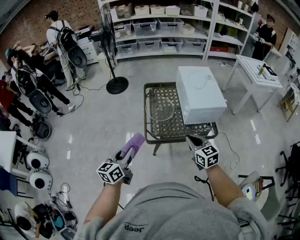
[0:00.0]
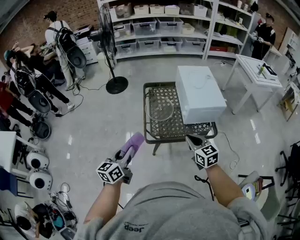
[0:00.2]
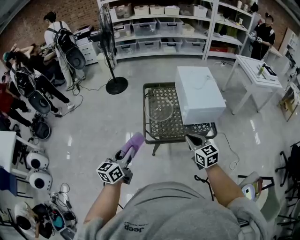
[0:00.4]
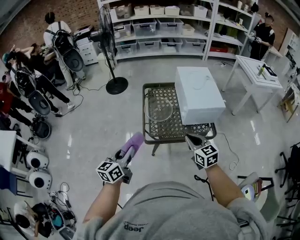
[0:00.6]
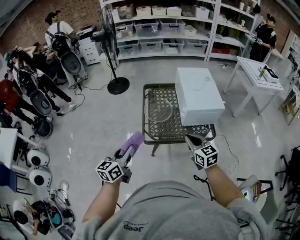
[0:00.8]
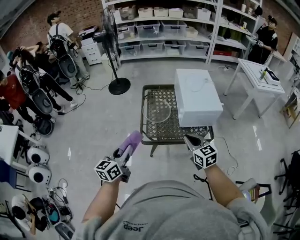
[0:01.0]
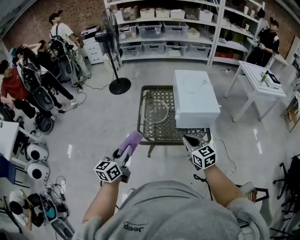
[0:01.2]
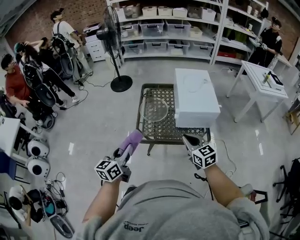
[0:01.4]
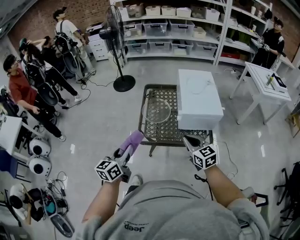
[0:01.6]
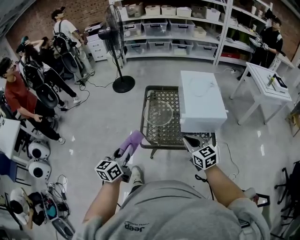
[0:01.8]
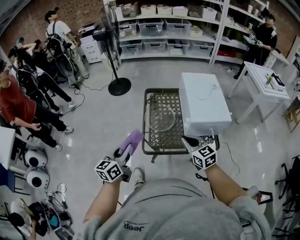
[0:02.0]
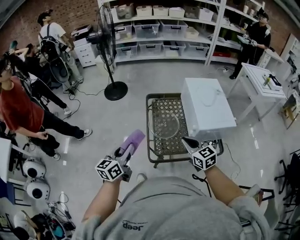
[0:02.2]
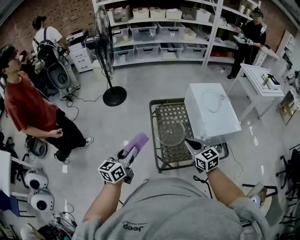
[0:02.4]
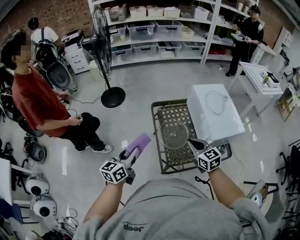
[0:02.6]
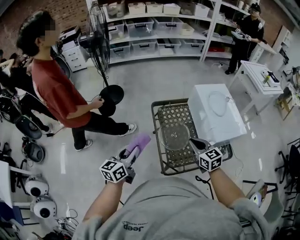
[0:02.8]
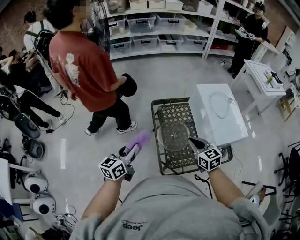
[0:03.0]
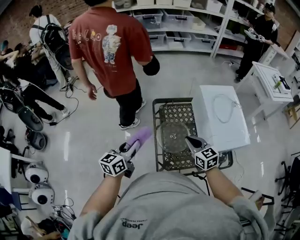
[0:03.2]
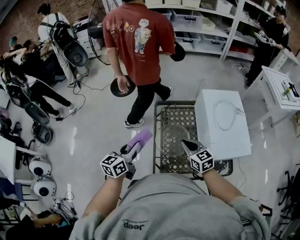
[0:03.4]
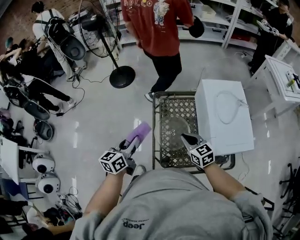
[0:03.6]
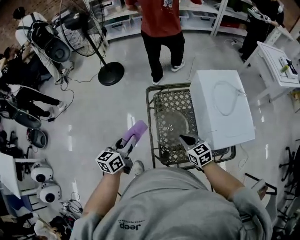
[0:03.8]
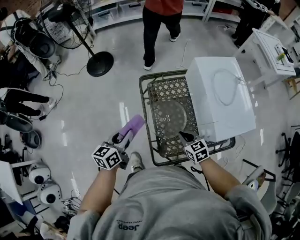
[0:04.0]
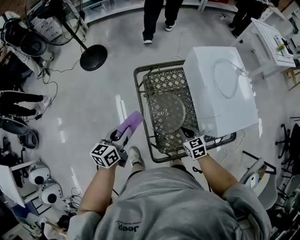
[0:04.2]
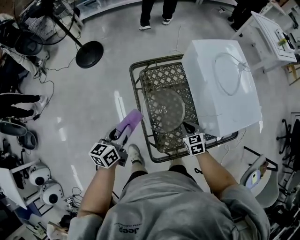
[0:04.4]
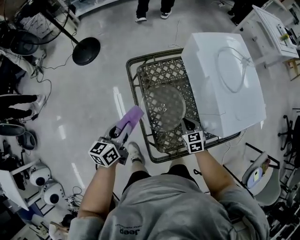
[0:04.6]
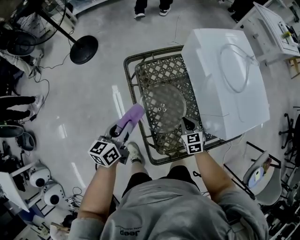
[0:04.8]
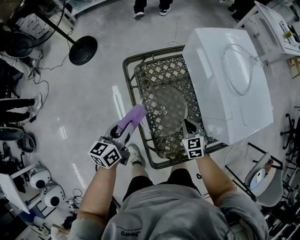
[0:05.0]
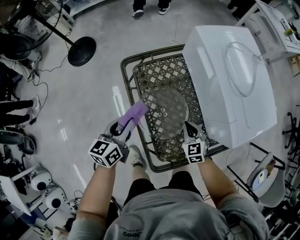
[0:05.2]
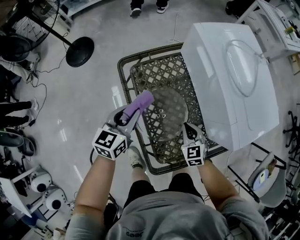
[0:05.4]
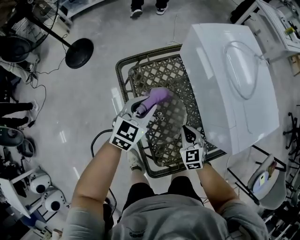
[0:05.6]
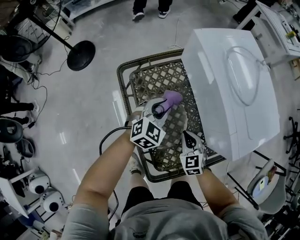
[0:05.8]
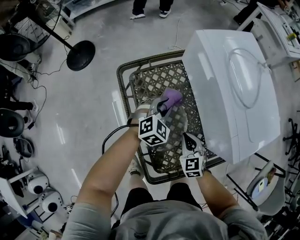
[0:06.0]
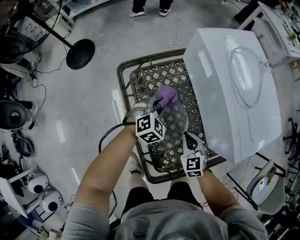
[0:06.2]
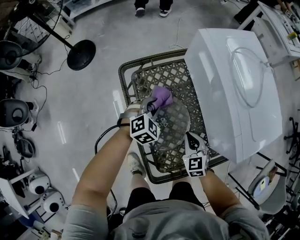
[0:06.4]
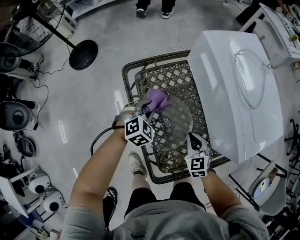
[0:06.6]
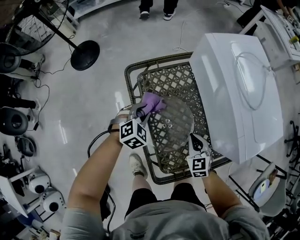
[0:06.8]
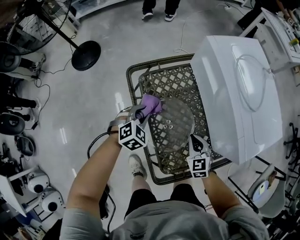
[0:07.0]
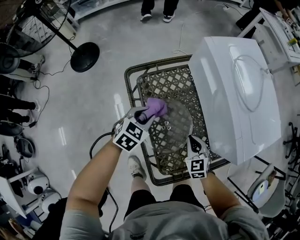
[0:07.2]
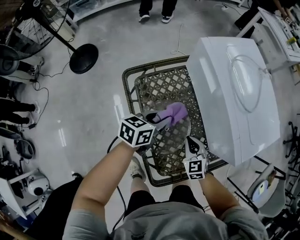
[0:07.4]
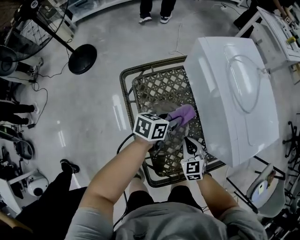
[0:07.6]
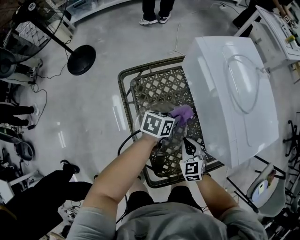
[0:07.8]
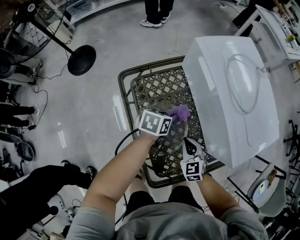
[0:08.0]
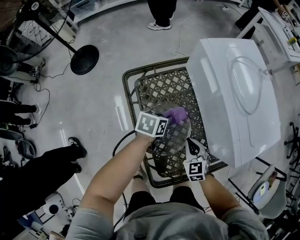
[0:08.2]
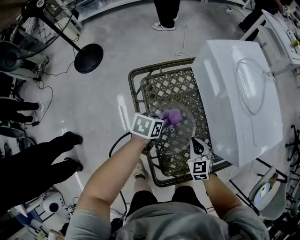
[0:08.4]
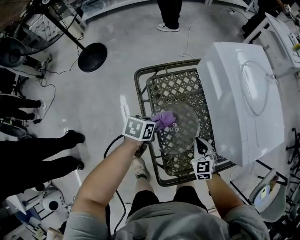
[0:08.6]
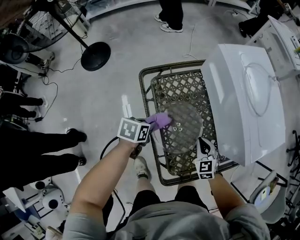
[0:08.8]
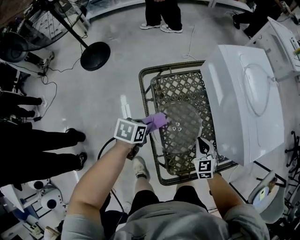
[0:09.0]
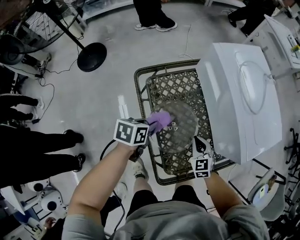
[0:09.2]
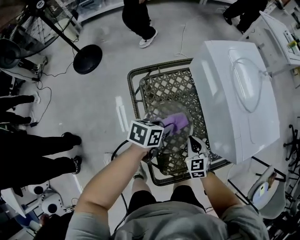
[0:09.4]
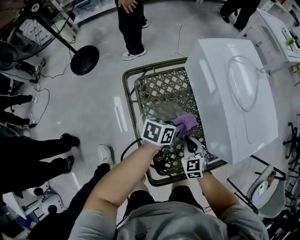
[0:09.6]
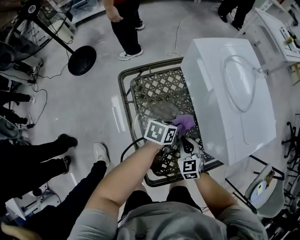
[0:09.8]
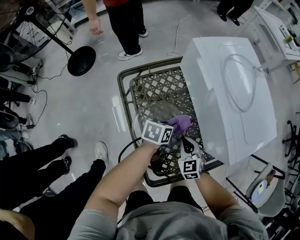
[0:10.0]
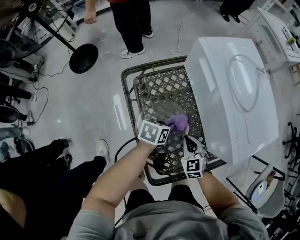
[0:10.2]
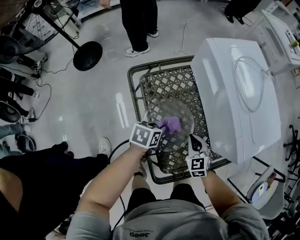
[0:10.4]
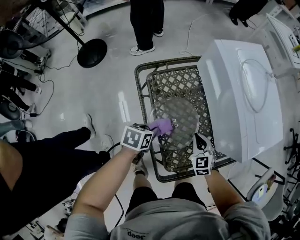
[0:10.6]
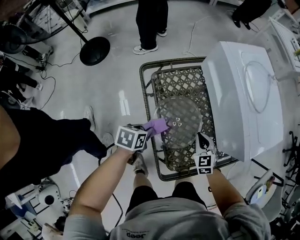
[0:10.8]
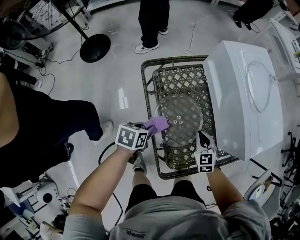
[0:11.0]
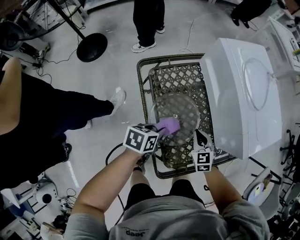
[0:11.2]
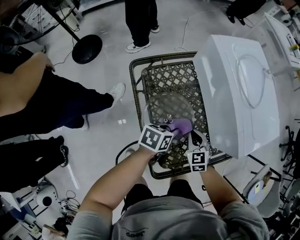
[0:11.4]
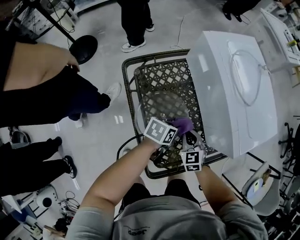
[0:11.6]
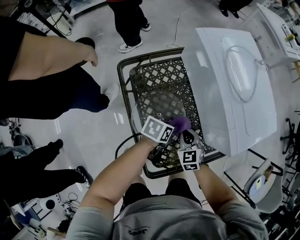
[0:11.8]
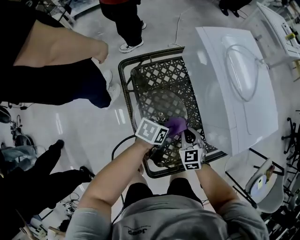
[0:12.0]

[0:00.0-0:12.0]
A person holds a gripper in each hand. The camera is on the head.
0.0 to 1.6 s: Both grippers travel together to the right, some 10 cm.
1.6 to 3.0 s: The grippers both shift forward and to the left by approximately 35 cm.
3.0 to 4.4 s: The left gripper moves downward, forward and to the right, some 20 cm, while the right gripper travels downward by about 25 cm, and changes its angle by approximately 20 degrees.
4.4 to 6.0 s: The left gripper travels to the right, forward and downward by roughly 30 cm, and rotates around the line of its fingers by some 70 degrees, clockwise from behind.
6.0 to 7.6 s: The left gripper reaches some 10 cm to the left, then returns, and rolls counterclockwise, seen from behind, by some 60 degrees.
7.6 to 9.0 s: The left gripper goes some 20 cm to the left and backward, and turns by approximately 30 degrees.
9.0 to 10.4 s: The left gripper is displaced to the right by roughly 10 cm.
10.4 to 12.0 s: The left gripper goes some 10 cm to the right.

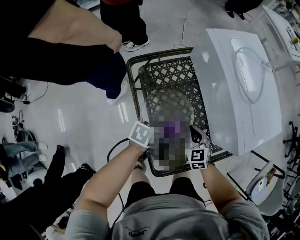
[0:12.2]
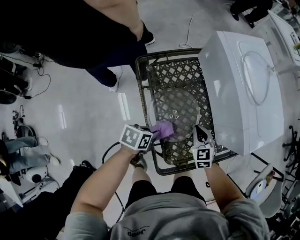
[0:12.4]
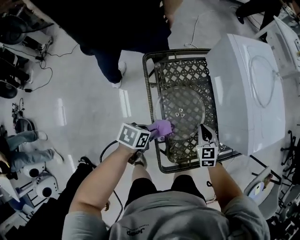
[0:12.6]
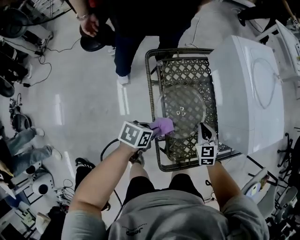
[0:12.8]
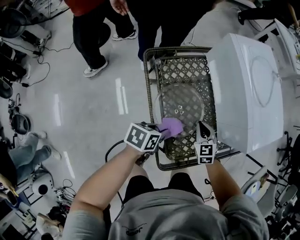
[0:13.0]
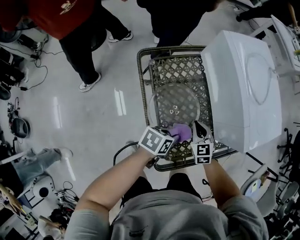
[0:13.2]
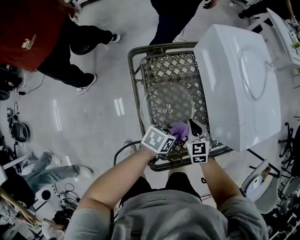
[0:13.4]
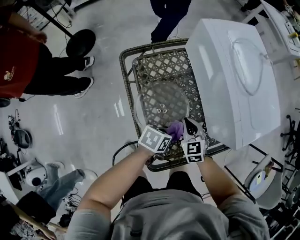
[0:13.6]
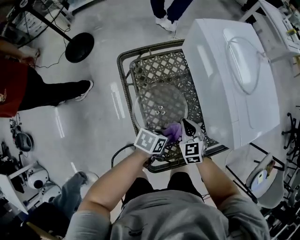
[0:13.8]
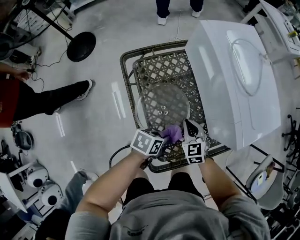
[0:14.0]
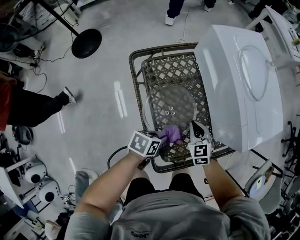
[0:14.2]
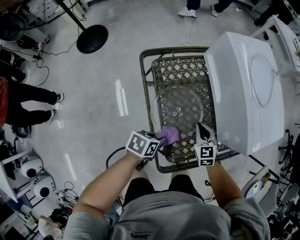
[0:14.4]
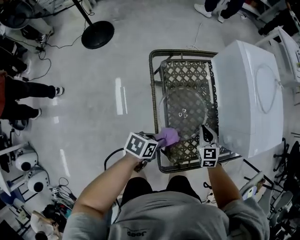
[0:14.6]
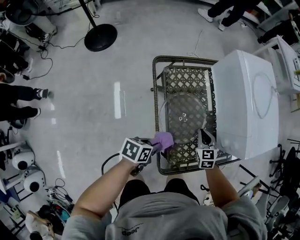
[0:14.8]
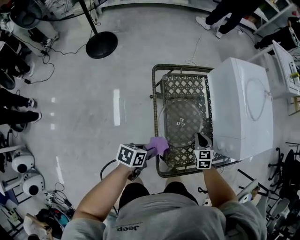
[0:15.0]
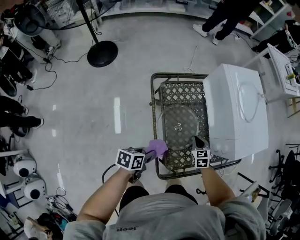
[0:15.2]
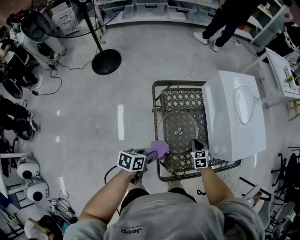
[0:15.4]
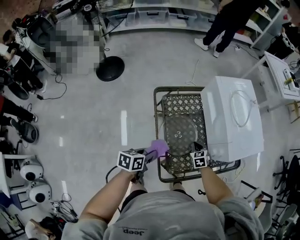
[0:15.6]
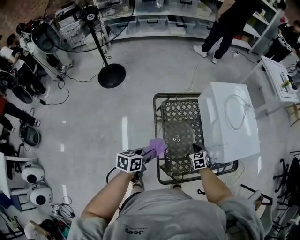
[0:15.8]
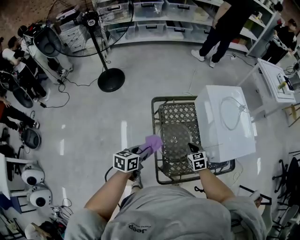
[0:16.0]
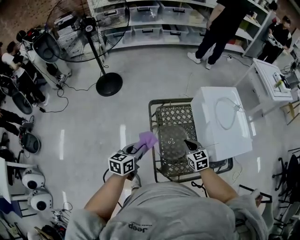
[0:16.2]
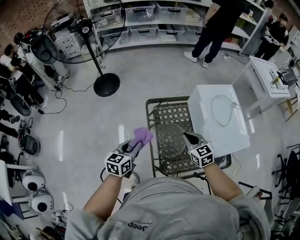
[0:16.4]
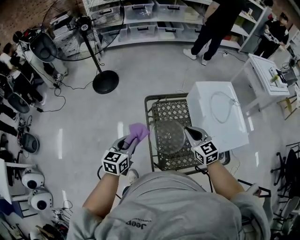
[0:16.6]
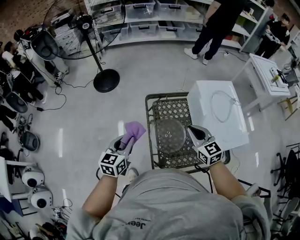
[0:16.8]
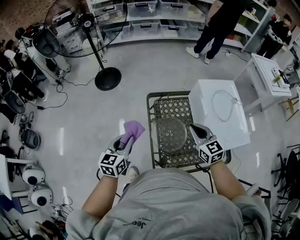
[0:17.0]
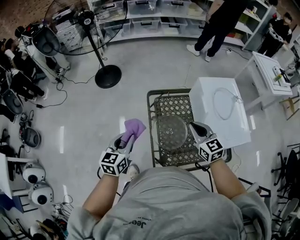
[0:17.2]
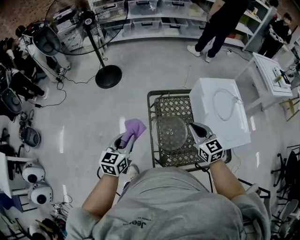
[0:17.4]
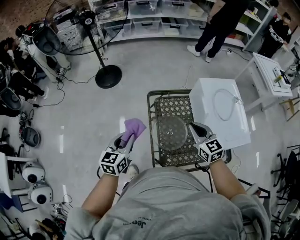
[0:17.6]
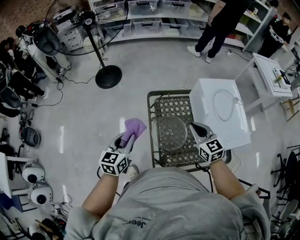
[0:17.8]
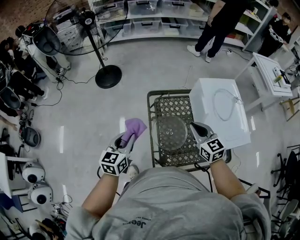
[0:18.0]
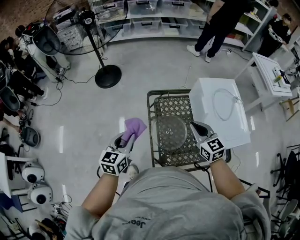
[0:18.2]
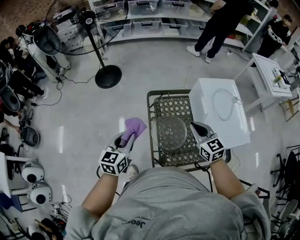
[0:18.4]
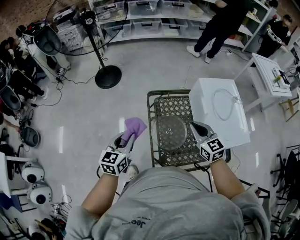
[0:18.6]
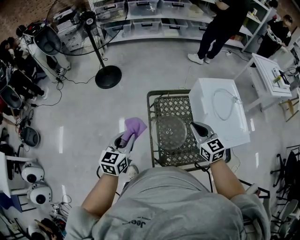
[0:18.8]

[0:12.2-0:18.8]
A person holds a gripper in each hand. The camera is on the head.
12.2 to 13.8 s: The left gripper shifts about 5 cm to the right.
13.8 to 15.4 s: The left gripper is displaced to the left, backward and upward by roughly 20 cm, and turns by roughly 20 degrees.
15.4 to 17.2 s: The right gripper moves upward, approximately 30 cm, and points its fingers about 30 degrees further upward; the left gripper goes approximately 20 cm upward, and turns by approximately 40 degrees.
17.2 to 18.8 s: Both grippers stay put.

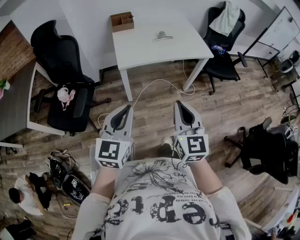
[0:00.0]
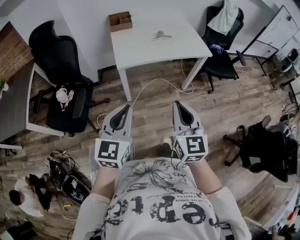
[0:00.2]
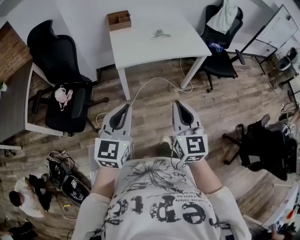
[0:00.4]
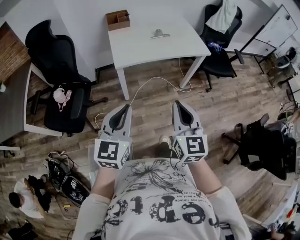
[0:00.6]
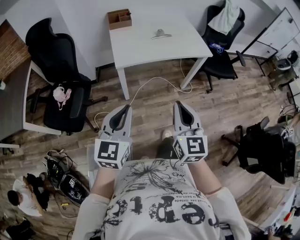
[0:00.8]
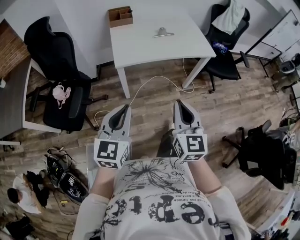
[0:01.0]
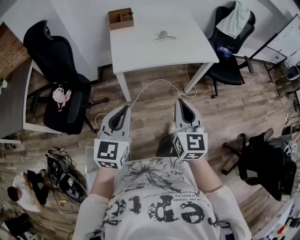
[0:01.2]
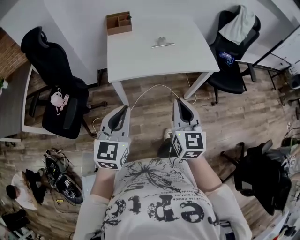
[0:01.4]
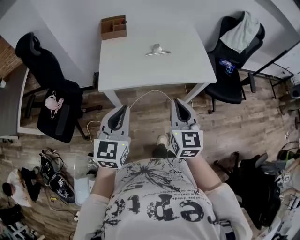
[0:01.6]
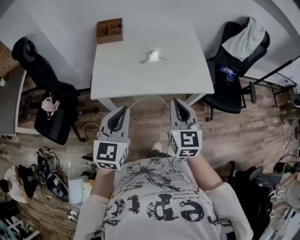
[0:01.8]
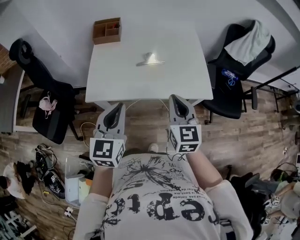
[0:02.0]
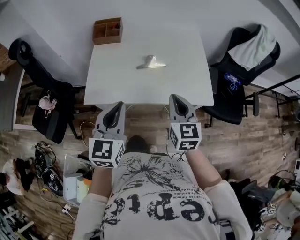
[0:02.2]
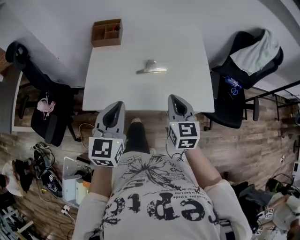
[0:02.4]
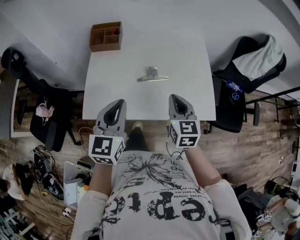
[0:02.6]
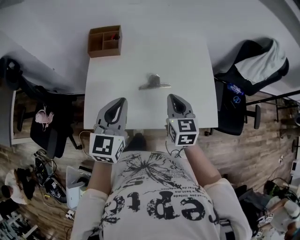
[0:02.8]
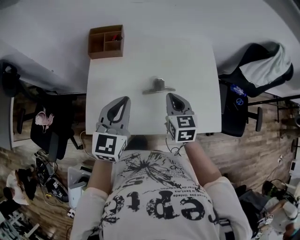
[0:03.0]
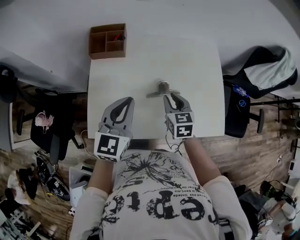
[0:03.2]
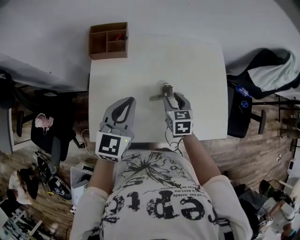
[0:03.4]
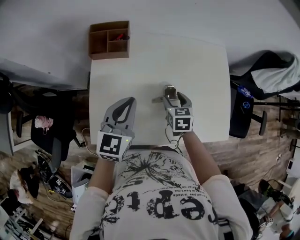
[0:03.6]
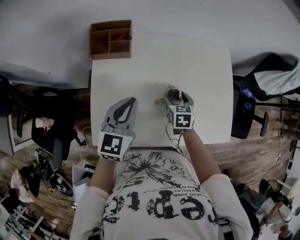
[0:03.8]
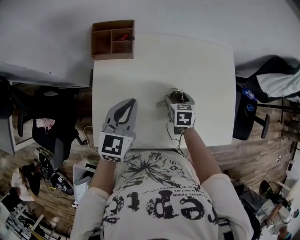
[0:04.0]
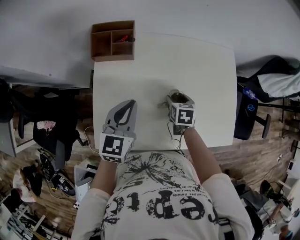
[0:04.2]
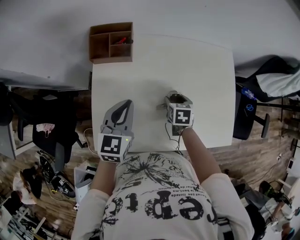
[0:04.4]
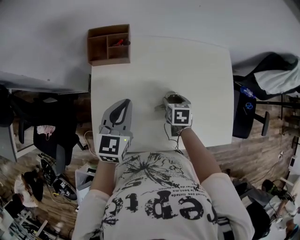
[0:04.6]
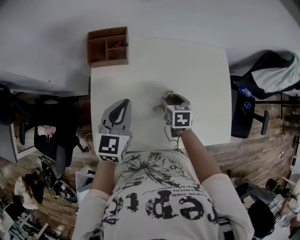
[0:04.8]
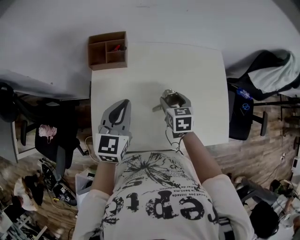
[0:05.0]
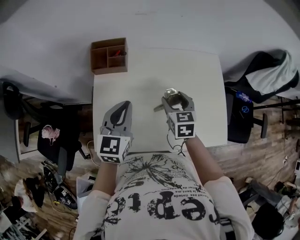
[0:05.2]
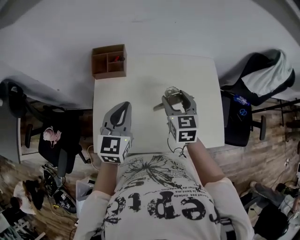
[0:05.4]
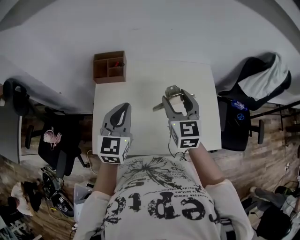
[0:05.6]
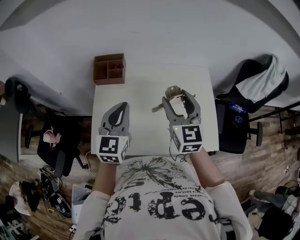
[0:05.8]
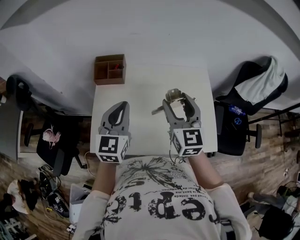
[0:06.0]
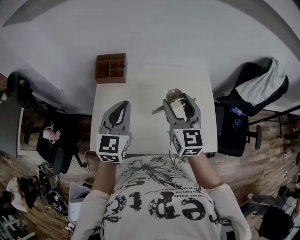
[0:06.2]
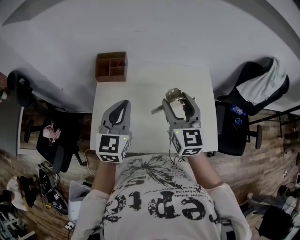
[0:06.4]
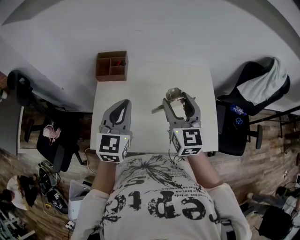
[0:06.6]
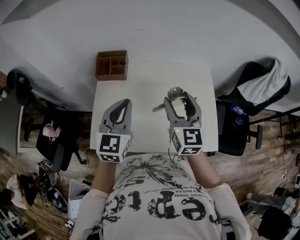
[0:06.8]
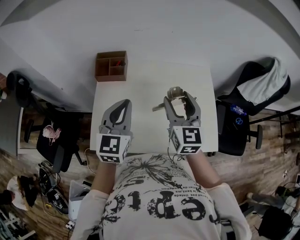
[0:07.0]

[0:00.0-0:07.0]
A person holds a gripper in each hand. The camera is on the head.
0.0 to 1.4 s: Both grippers travel together forward, approximately 20 cm.
1.4 to 2.8 s: The two grippers travel together, forward, roughly 40 cm.
2.8 to 4.2 s: The right gripper moves downward and forward, approximately 25 cm, angles its fingers downward, by approximately 30 degrees, and opens; the left gripper travels forward, downward and to the left by roughly 20 cm.
4.2 to 5.6 s: The right gripper is displaced upward by about 30 cm, and points its fingers roughly 40 degrees further upward. The left gripper shifts approximately 15 cm upward and to the right.
5.6 to 7.0 s: There are only small adjustments of the grippers.
